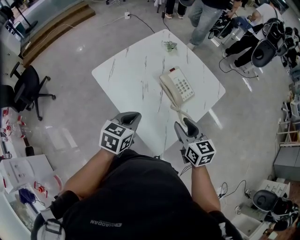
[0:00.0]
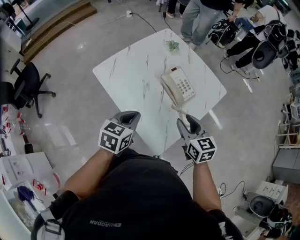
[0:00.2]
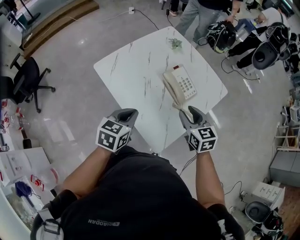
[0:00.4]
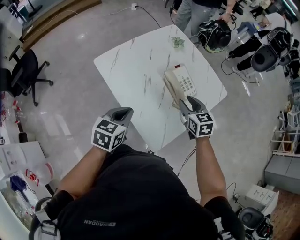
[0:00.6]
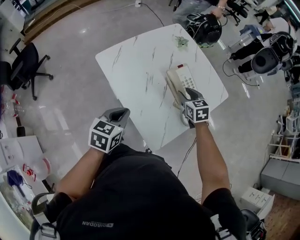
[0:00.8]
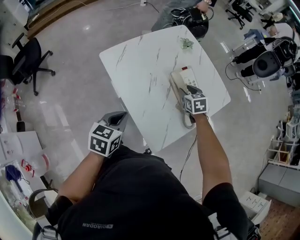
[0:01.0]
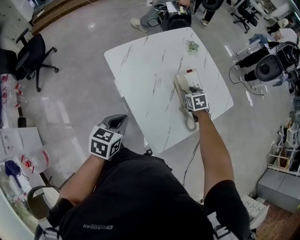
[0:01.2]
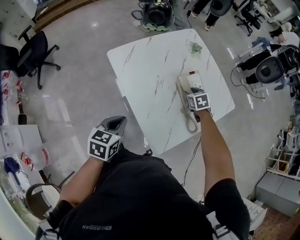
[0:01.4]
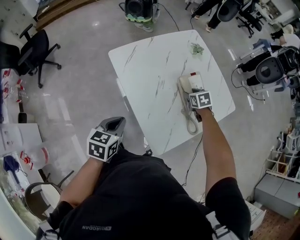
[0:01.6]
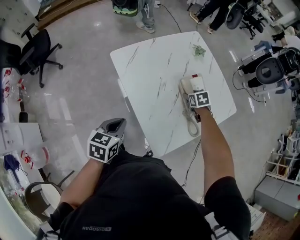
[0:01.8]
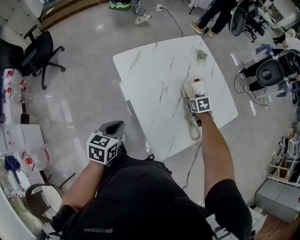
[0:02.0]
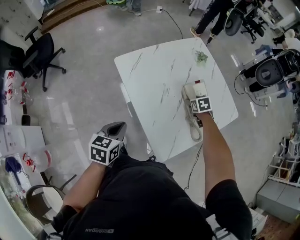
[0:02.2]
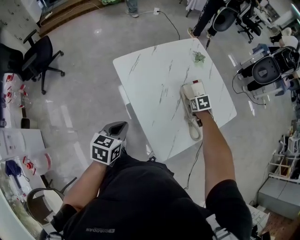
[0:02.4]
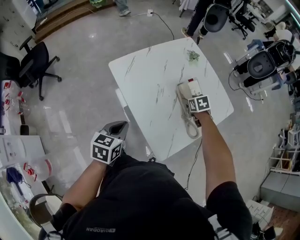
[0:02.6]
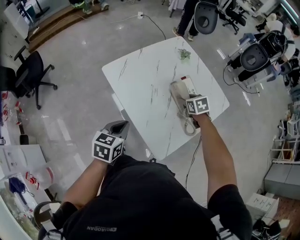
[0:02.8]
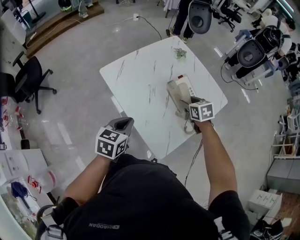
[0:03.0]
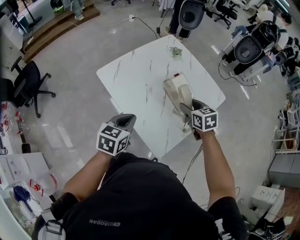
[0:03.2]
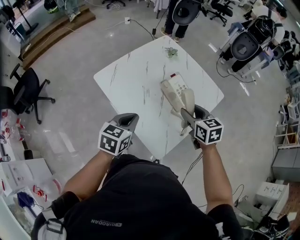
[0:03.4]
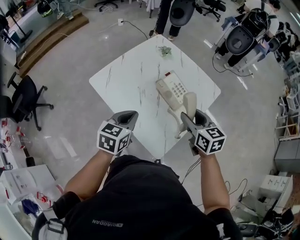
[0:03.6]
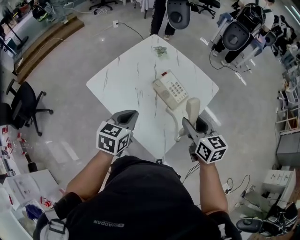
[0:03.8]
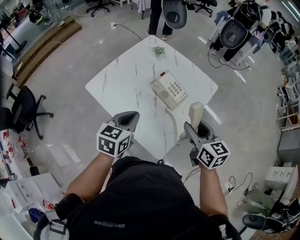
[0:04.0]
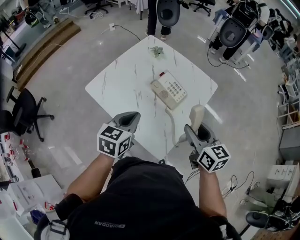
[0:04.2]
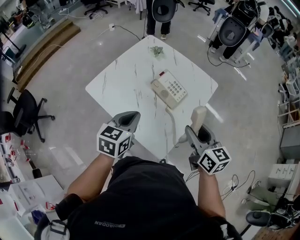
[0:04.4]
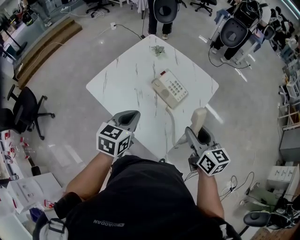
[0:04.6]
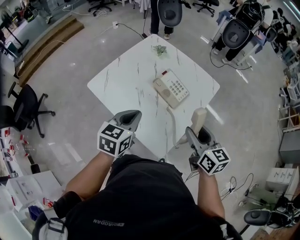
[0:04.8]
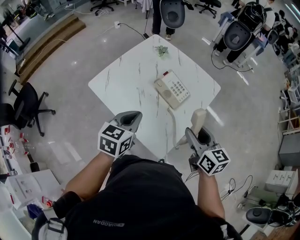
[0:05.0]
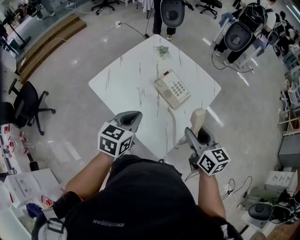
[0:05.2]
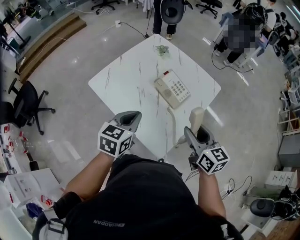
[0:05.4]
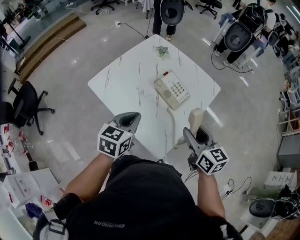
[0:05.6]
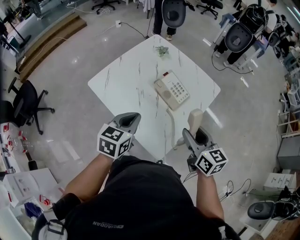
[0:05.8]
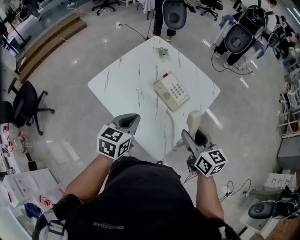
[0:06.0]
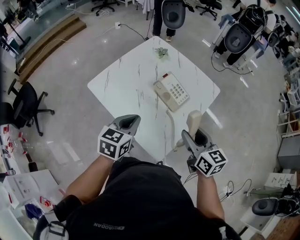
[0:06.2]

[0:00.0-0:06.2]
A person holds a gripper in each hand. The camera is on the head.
0:00.0 to 0:01.6: The left gripper goes some 10 cm to the left, and rotates roughly 20 degrees. Meanwhile the right gripper is displaced forward and downward by some 25 cm, and points its fingers about 40 degrees further downward.
0:01.6 to 0:03.2: The left gripper is displaced to the right by approximately 5 cm; the right gripper heads upward and backward, covering approximately 15 cm, and swivels roughly 20 degrees.
0:03.2 to 0:04.6: The right gripper travels backward, upward and to the right by some 20 cm, and turns by some 30 degrees. Meanwhile the left gripper moves to the right, some 5 cm.
0:04.6 to 0:06.2: The grippers stay close to where they were, moving slightly.

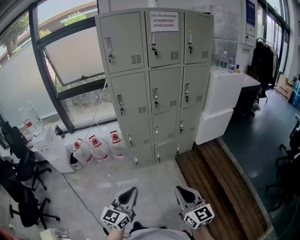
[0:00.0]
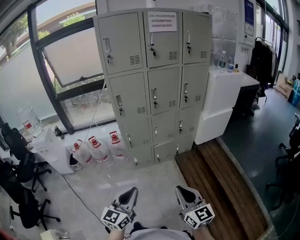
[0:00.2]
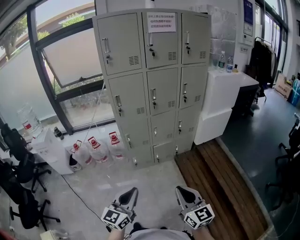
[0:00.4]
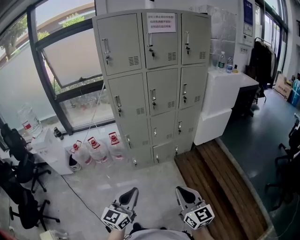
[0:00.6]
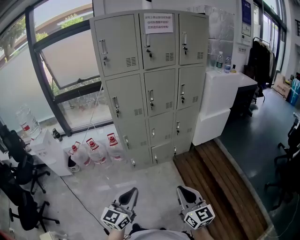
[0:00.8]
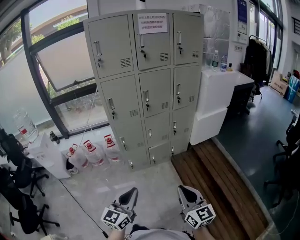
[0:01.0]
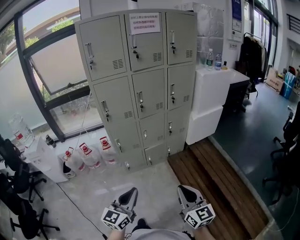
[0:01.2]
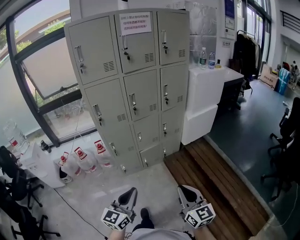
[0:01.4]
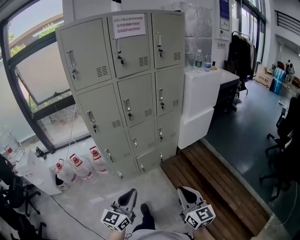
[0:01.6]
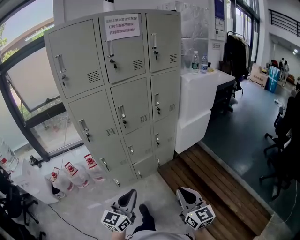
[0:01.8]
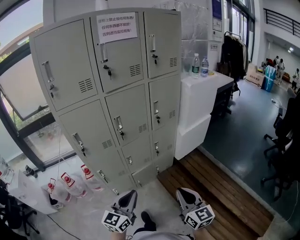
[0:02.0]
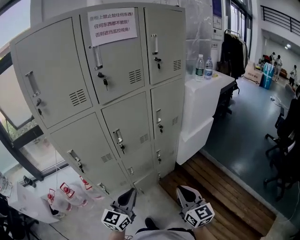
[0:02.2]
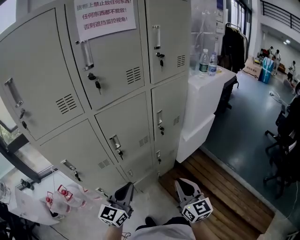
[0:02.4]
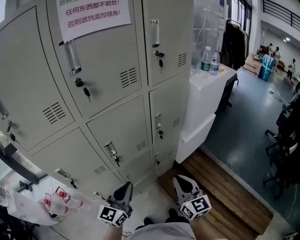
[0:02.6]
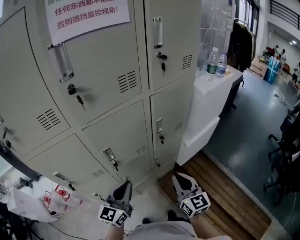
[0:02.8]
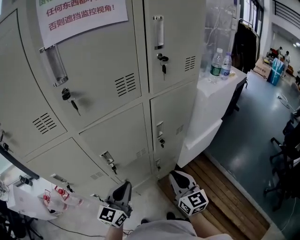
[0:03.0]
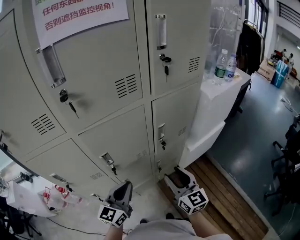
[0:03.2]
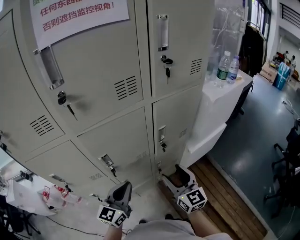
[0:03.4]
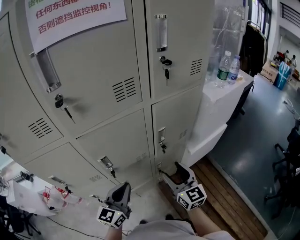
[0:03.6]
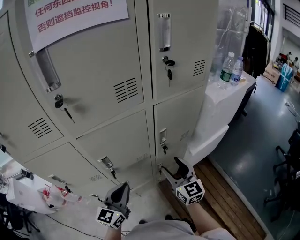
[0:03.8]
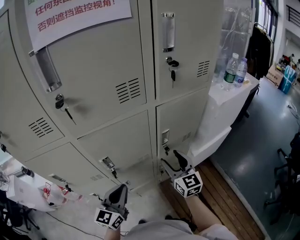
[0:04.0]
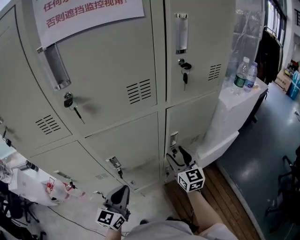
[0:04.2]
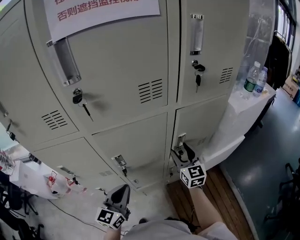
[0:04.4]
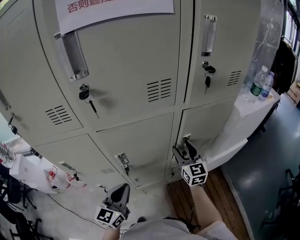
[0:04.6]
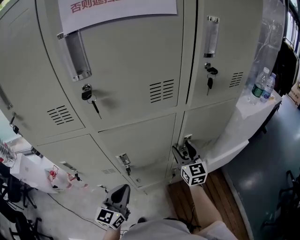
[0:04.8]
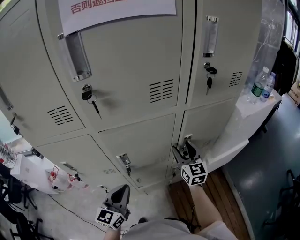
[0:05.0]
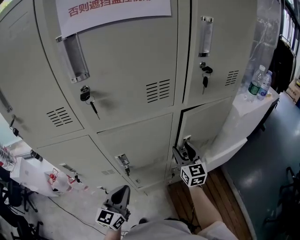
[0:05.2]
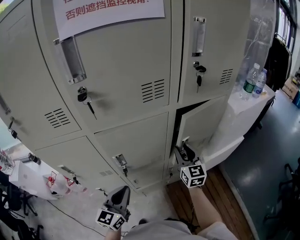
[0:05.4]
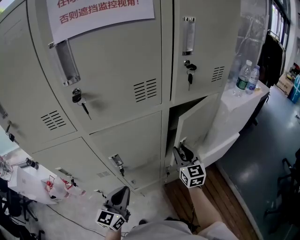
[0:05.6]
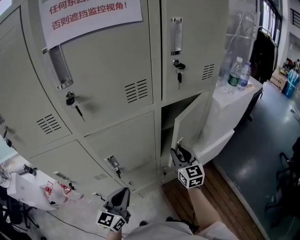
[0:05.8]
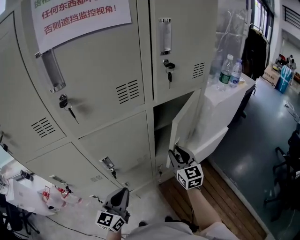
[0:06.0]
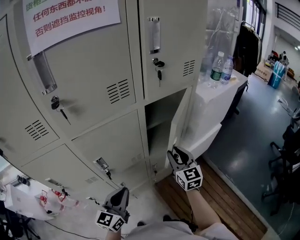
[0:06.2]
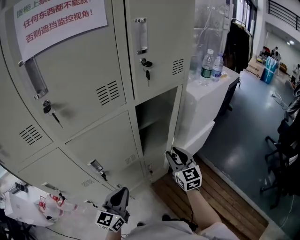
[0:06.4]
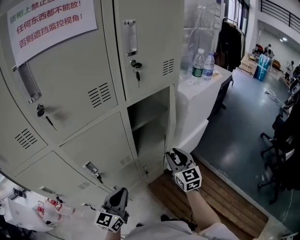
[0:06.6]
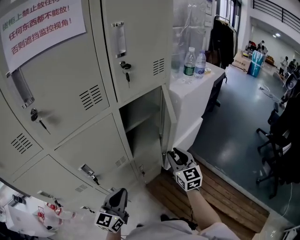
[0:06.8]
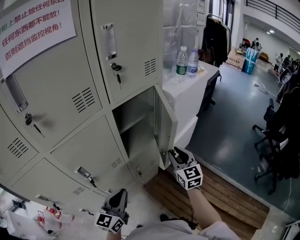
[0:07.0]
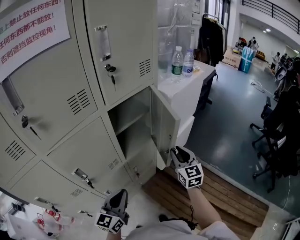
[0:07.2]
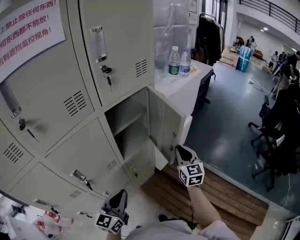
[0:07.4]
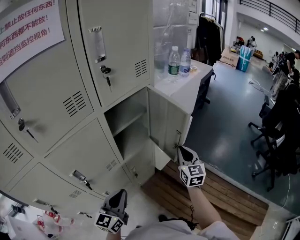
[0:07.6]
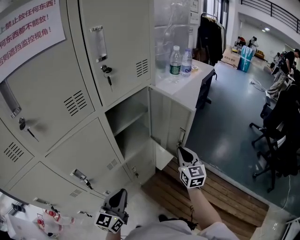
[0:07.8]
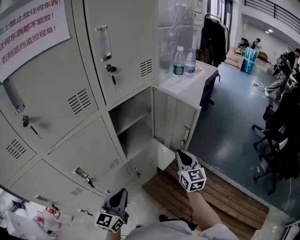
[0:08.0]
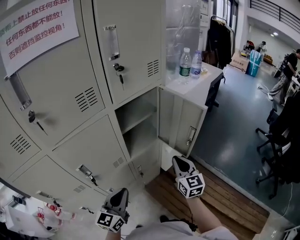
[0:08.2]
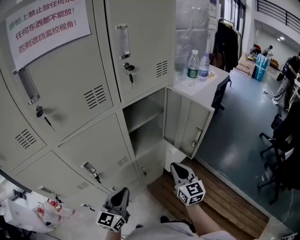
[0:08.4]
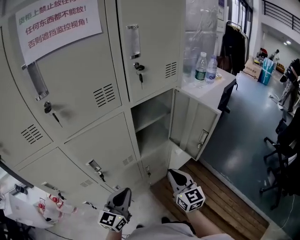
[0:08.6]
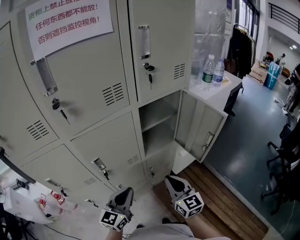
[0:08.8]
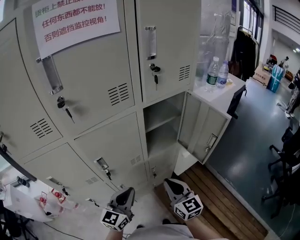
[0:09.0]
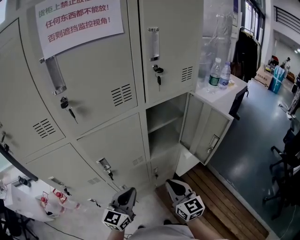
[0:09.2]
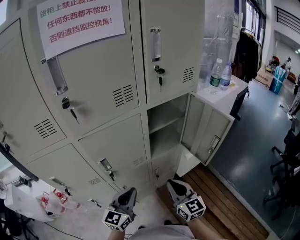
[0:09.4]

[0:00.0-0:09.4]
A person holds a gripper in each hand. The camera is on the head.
0:00.0 to 0:01.6: The right gripper goes about 15 cm to the right and forward, while the left gripper is displaced forward and to the right by some 15 cm.
0:01.6 to 0:03.2: Both grippers are carried forward, roughly 50 cm. The right gripper opens.
0:03.2 to 0:04.8: The left gripper shifts approximately 5 cm to the left; the right gripper travels forward by roughly 20 cm, and opens.
0:04.8 to 0:06.2: The right gripper shifts some 10 cm to the right and backward, and closes; the left gripper is displaced to the right by some 5 cm.
0:06.2 to 0:07.8: The right gripper heads to the right, covering about 20 cm, changes its angle by some 20 degrees, and closes, while the left gripper heads to the right, covering about 10 cm.
0:07.8 to 0:09.4: The right gripper heads to the left and backward, covering some 20 cm, and swivels roughly 30 degrees, while the left gripper goes about 5 cm to the left.

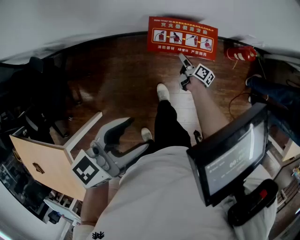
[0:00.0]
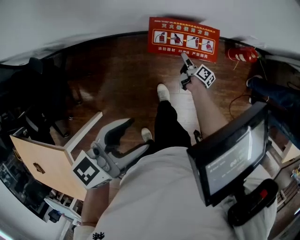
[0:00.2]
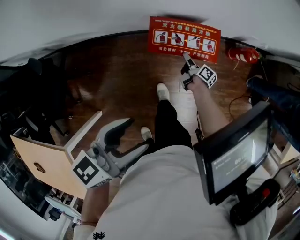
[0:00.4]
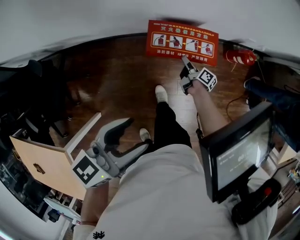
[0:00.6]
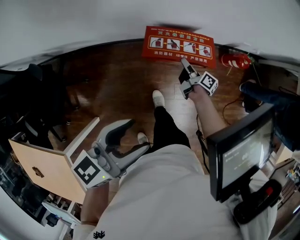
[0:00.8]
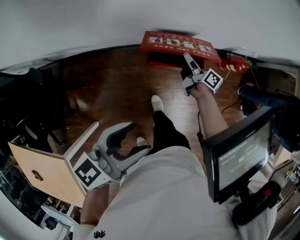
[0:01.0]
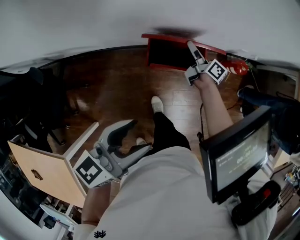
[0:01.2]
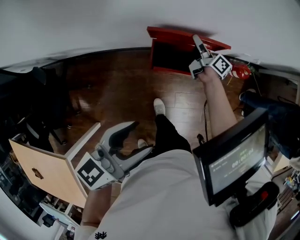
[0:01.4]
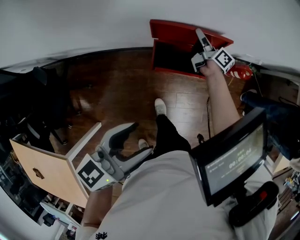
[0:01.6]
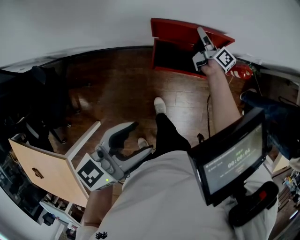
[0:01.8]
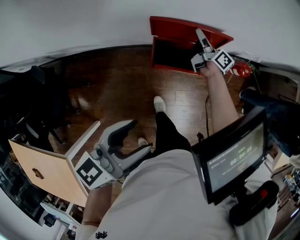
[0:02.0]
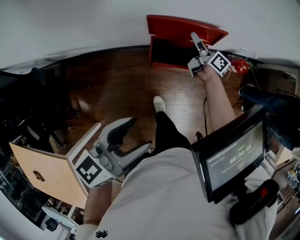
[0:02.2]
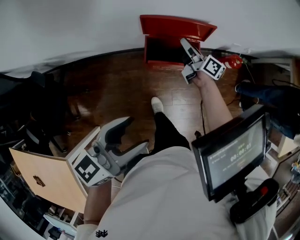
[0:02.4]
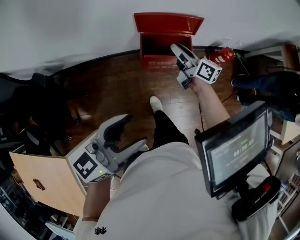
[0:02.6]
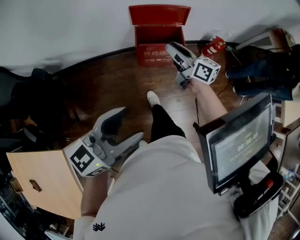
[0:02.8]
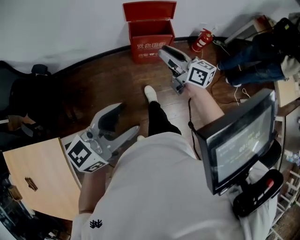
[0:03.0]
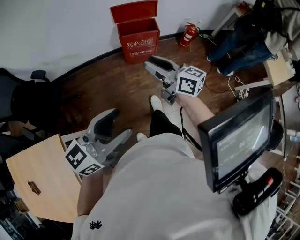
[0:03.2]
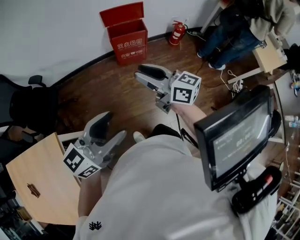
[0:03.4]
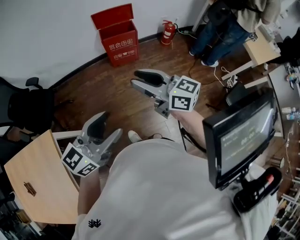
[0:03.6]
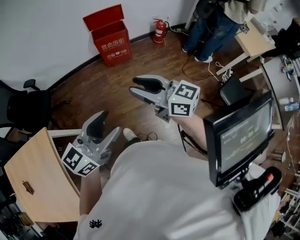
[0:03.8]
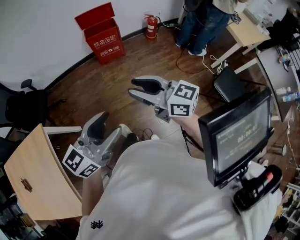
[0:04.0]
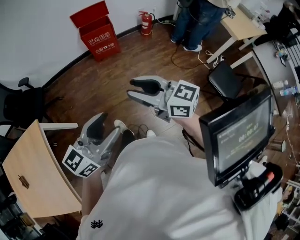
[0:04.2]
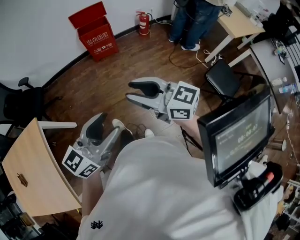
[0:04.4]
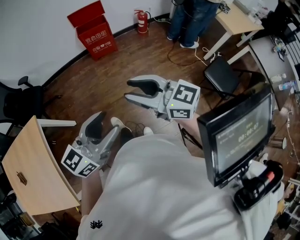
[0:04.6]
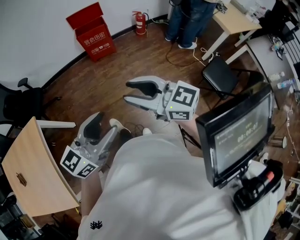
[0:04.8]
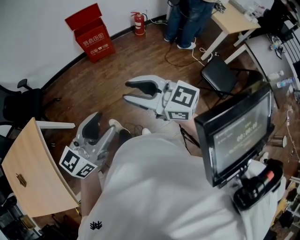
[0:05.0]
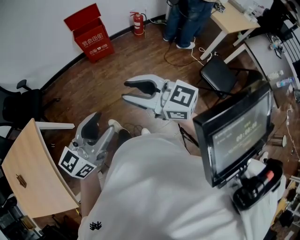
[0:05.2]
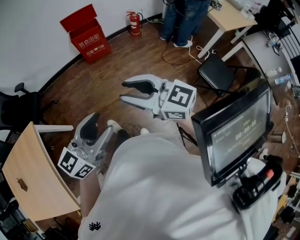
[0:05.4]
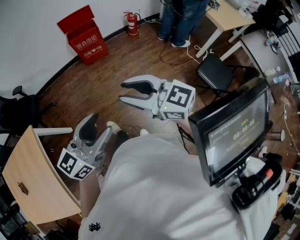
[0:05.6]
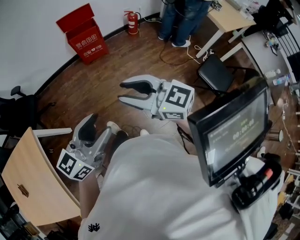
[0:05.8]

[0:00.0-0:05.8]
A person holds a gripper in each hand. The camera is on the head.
0:00.0 to 0:01.4: The right gripper travels upward and forward by about 25 cm, changes its angle by approximately 20 degrees, and closes its fingers, while the left gripper shifts roughly 5 cm forward.
0:01.4 to 0:02.8: The right gripper travels backward and upward by approximately 30 cm, and rotates about 30 degrees, while the left gripper heads backward, covering approximately 15 cm.
0:02.8 to 0:04.4: Both grippers are carried backward, some 50 cm. The right gripper changes its angle by roughly 30 degrees.
0:04.4 to 0:05.8: The grippers move only a little.

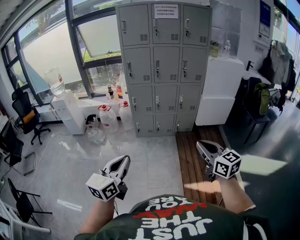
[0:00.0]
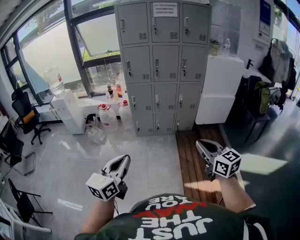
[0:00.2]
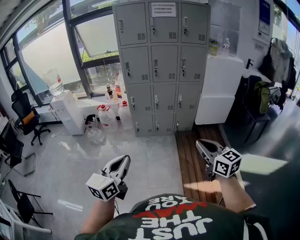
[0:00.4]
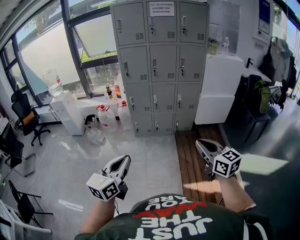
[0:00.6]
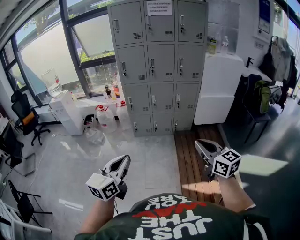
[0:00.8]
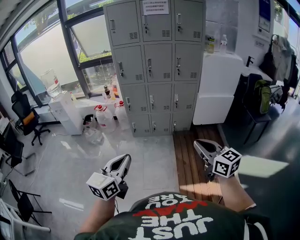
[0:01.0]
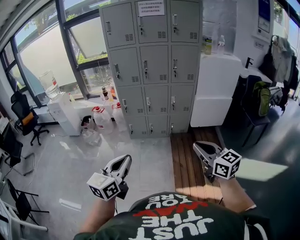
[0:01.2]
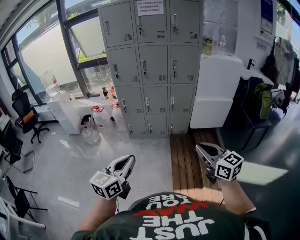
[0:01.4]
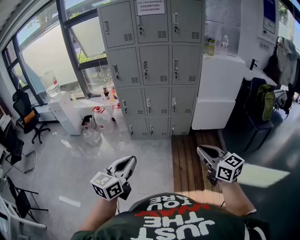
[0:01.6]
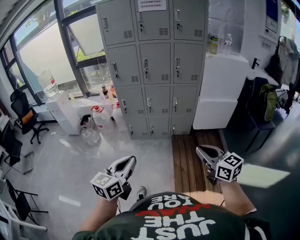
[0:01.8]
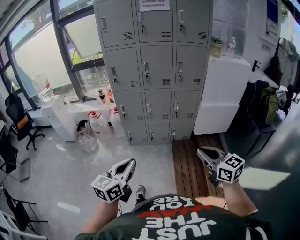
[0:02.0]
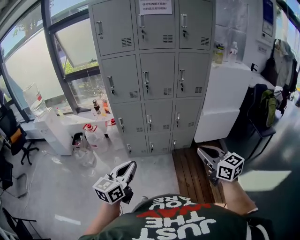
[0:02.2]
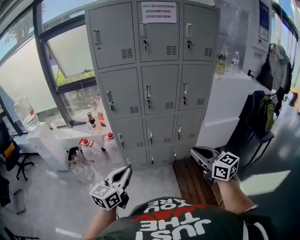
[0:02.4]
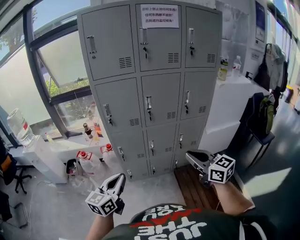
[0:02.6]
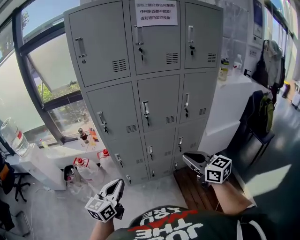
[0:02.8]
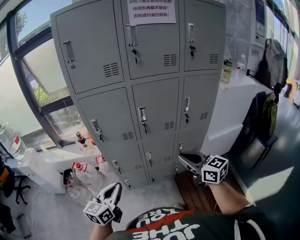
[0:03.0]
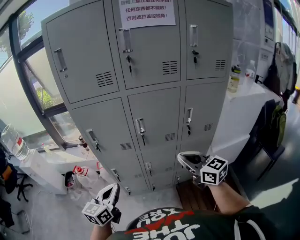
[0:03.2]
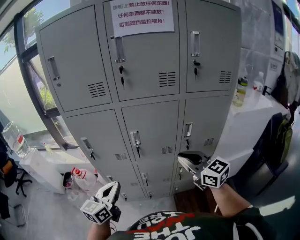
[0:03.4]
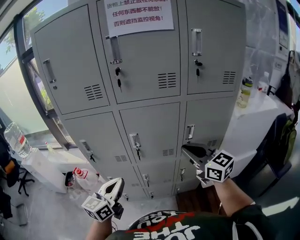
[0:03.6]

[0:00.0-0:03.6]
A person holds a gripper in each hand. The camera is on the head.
0:00.0 to 0:01.8: Both grippers move to the right and forward, some 20 cm.
0:01.8 to 0:03.6: Both grippers are carried forward, roughly 70 cm.
